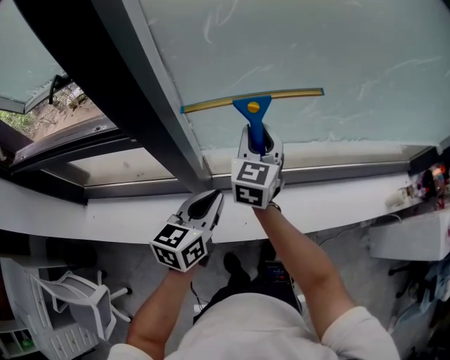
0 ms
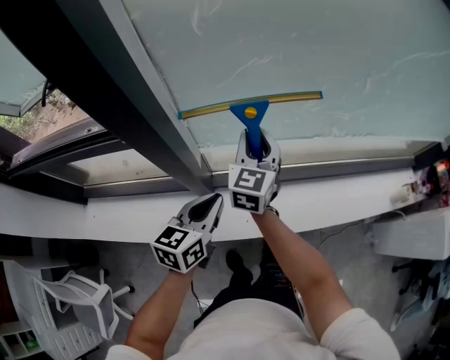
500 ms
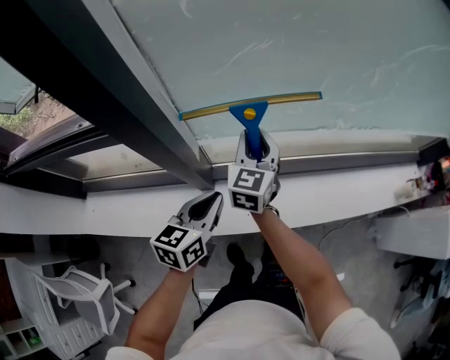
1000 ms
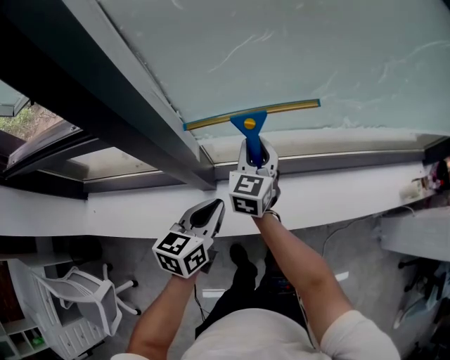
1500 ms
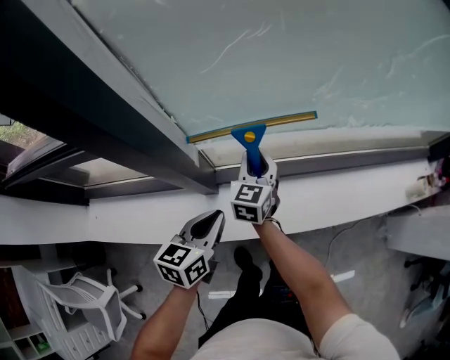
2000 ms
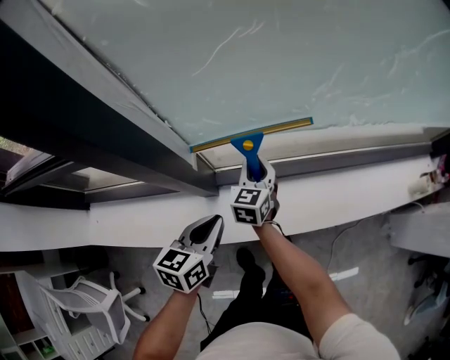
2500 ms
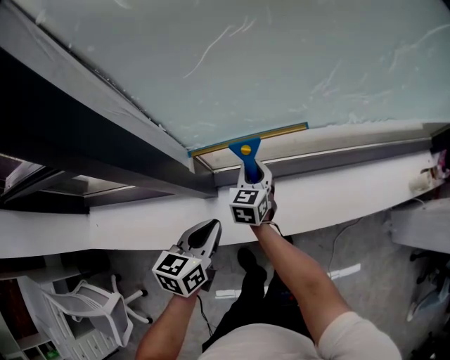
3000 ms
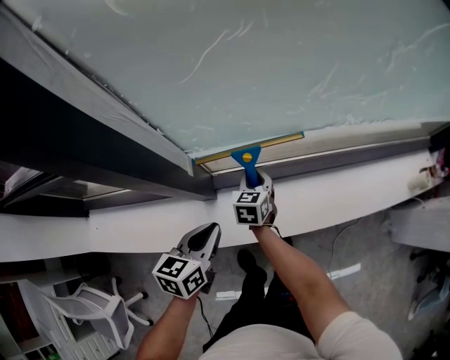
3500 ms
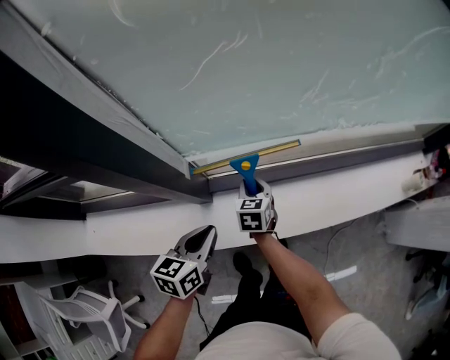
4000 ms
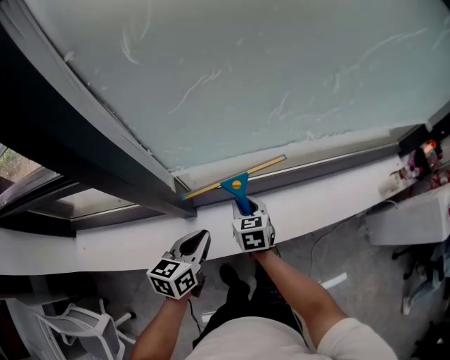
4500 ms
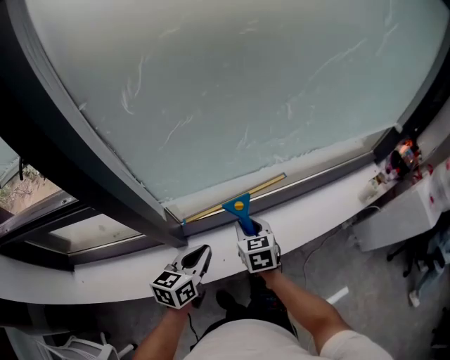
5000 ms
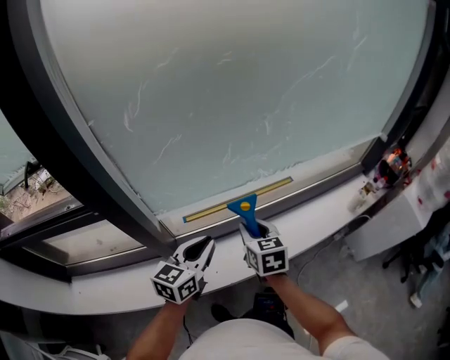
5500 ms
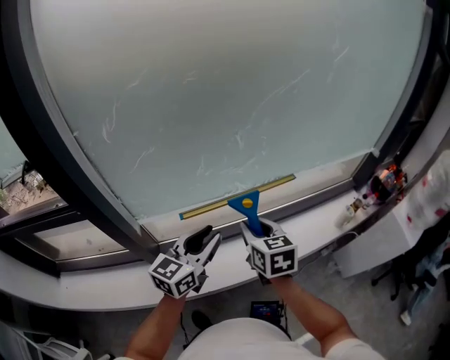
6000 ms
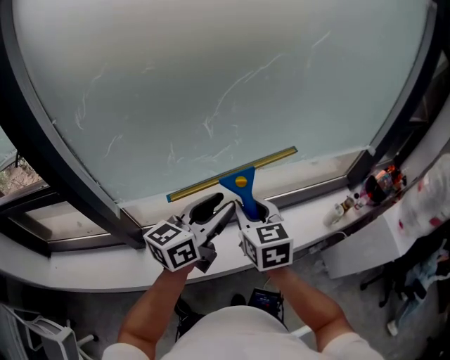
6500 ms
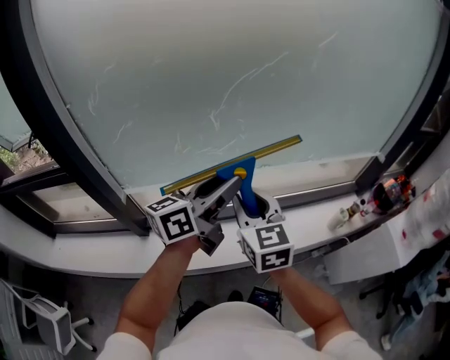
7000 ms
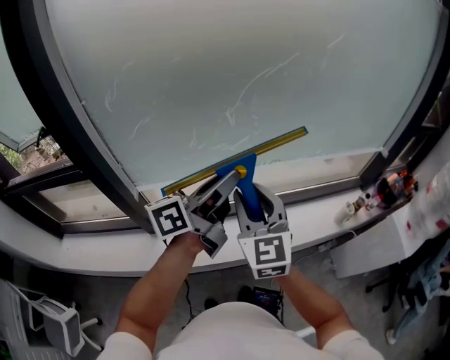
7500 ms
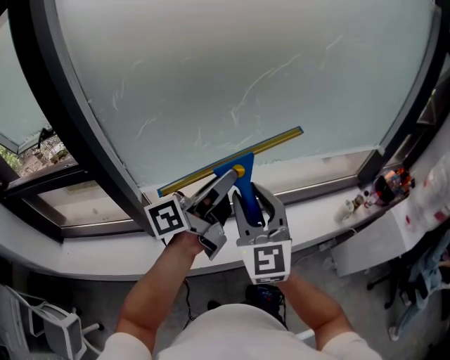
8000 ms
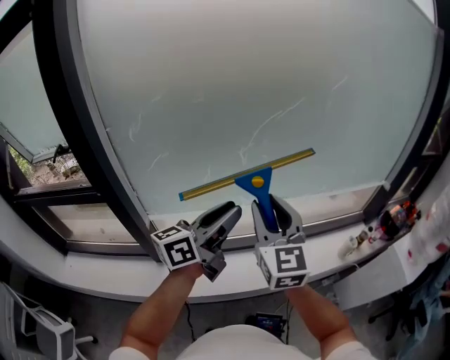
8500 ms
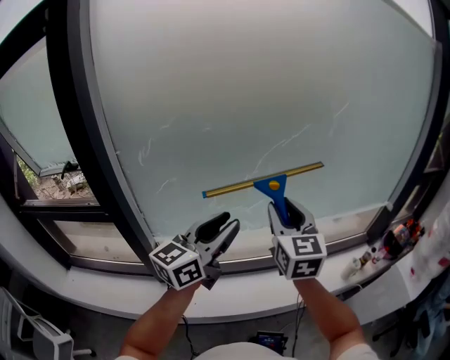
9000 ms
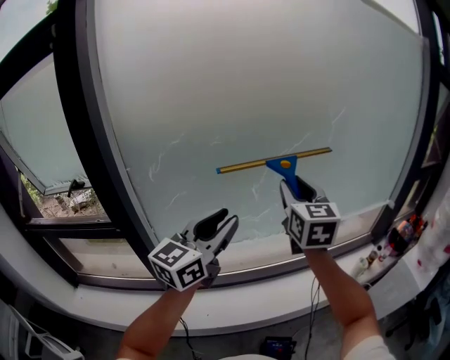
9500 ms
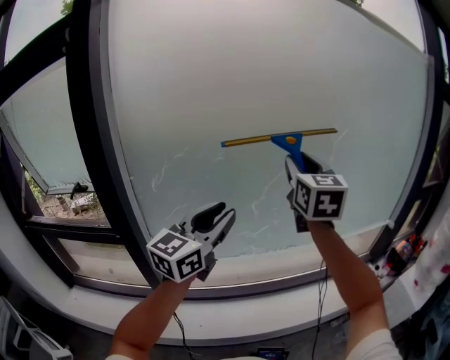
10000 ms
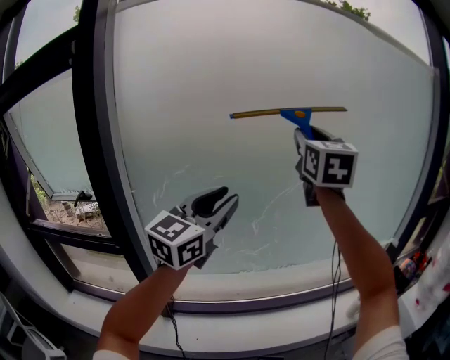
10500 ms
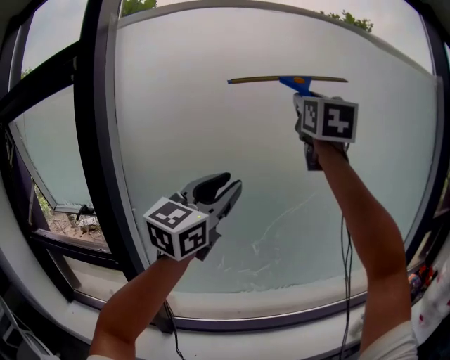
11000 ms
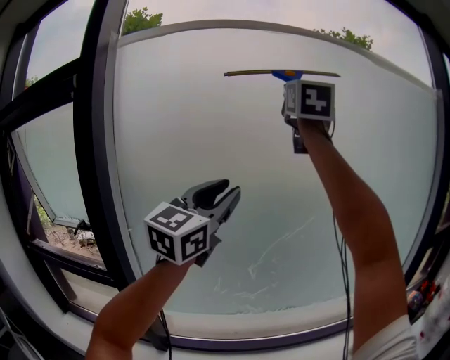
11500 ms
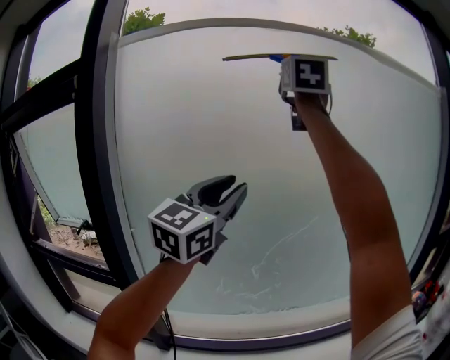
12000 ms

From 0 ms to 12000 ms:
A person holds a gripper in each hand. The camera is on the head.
From 0 ms to 2000 ms: The right gripper shifts roughly 20 cm downward. Meanwhile the left gripper heads downward, covering some 15 cm.
From 2000 ms to 4000 ms: The right gripper moves downward, about 10 cm, and changes its angle by approximately 20 degrees.
From 4000 ms to 6000 ms: The right gripper travels upward and to the right by roughly 40 cm. Meanwhile the left gripper is displaced to the right and upward by some 35 cm, changes its angle by approximately 40 degrees, and opens.
From 6000 ms to 8000 ms: The left gripper shifts about 15 cm upward and to the right, and swivels about 50 degrees. Meanwhile the right gripper shifts approximately 15 cm upward and backward, and points its fingers approximately 30 degrees further upward.
From 8000 ms to 10000 ms: The left gripper heads upward and to the left, covering approximately 15 cm, and rolls clockwise, seen from behind, by some 60 degrees. Meanwhile the right gripper heads upward and forward, covering about 30 cm.
From 10000 ms to 12000 ms: The right gripper goes about 40 cm upward; the left gripper moves upward and forward, roughly 20 cm, and changes its angle by about 20 degrees.

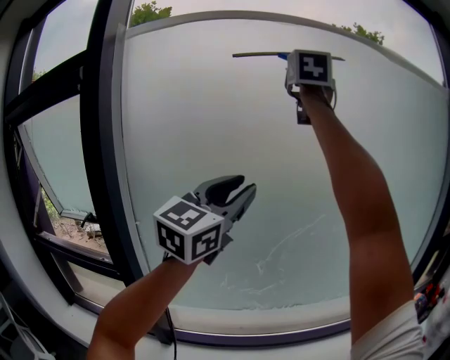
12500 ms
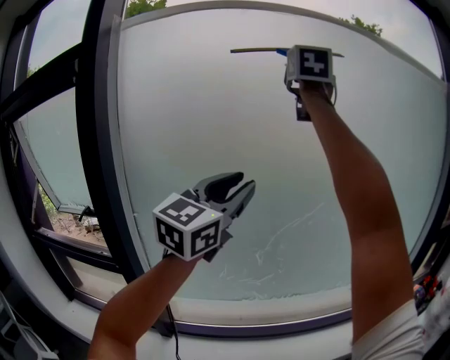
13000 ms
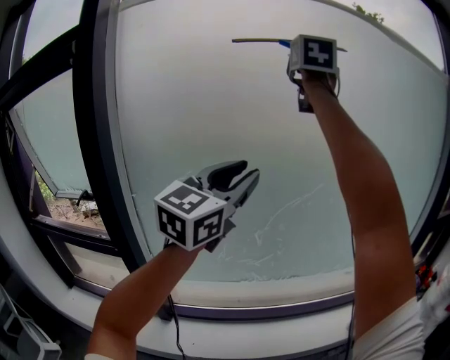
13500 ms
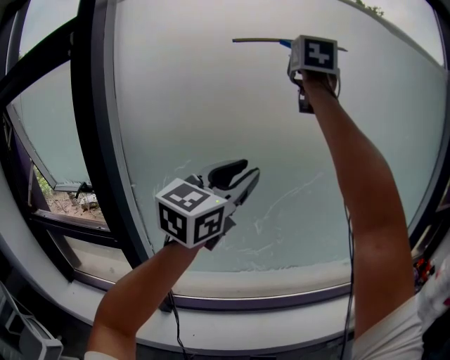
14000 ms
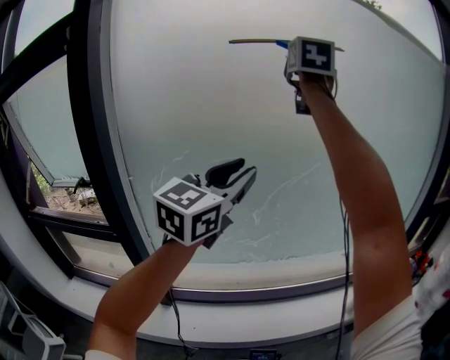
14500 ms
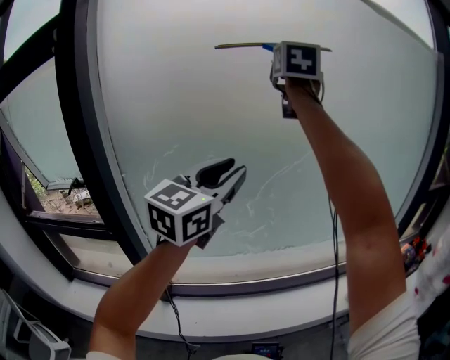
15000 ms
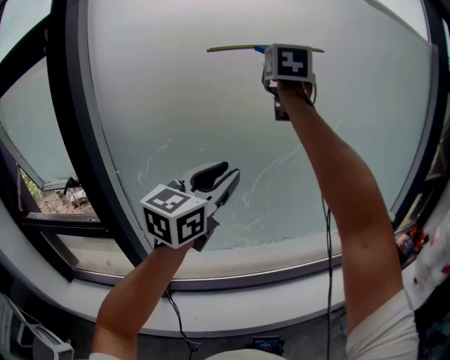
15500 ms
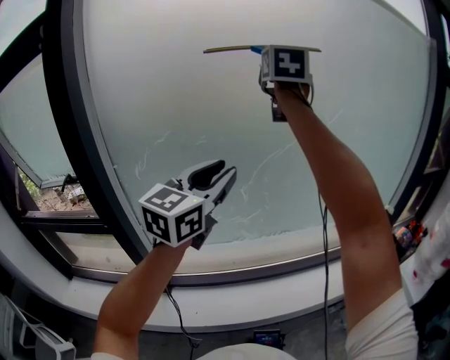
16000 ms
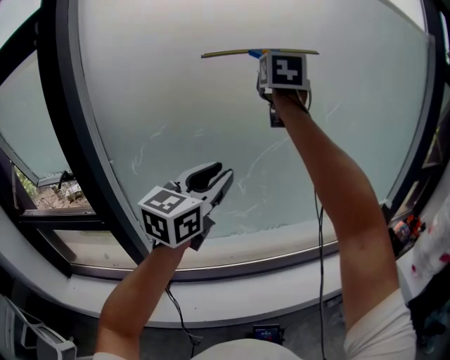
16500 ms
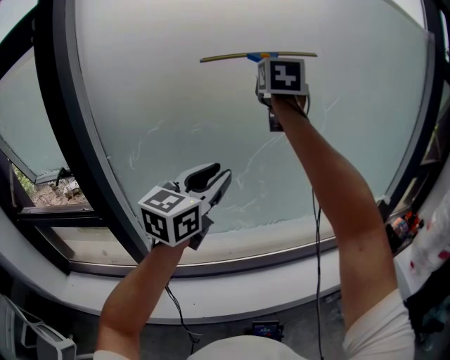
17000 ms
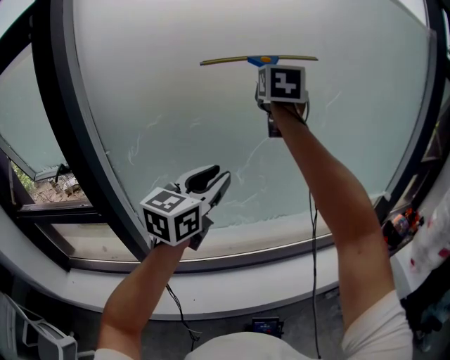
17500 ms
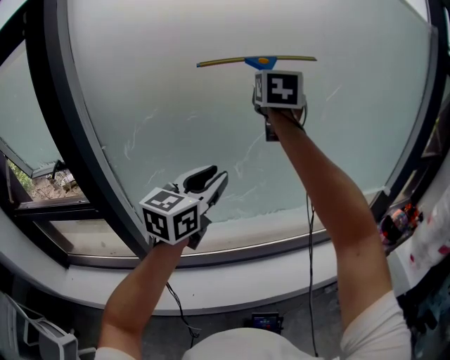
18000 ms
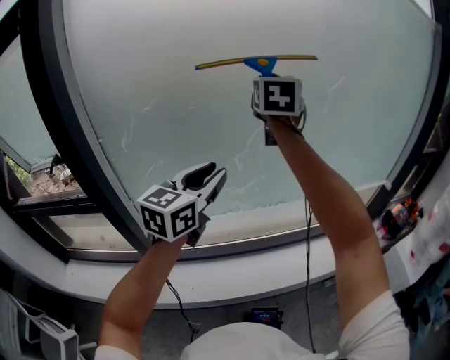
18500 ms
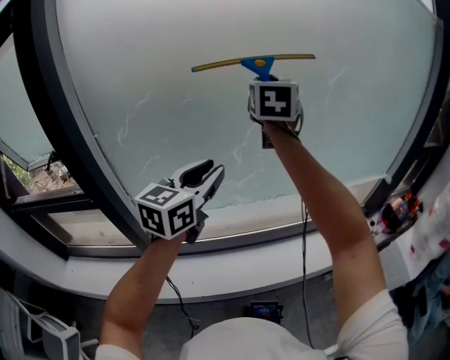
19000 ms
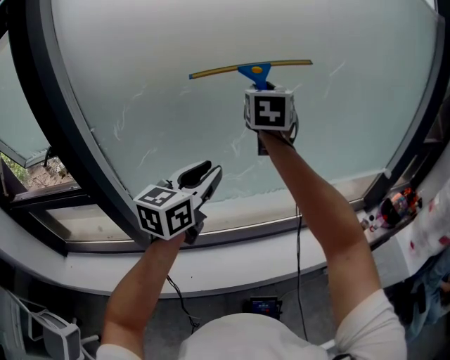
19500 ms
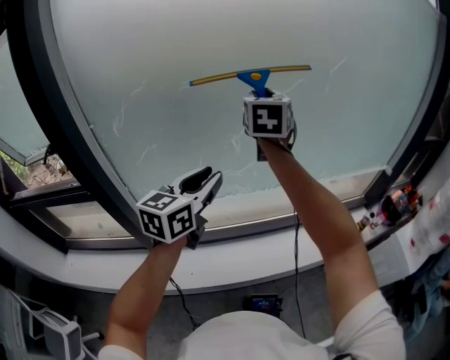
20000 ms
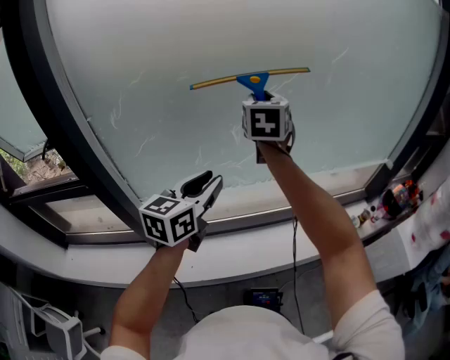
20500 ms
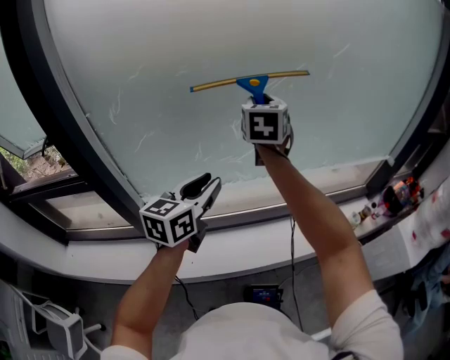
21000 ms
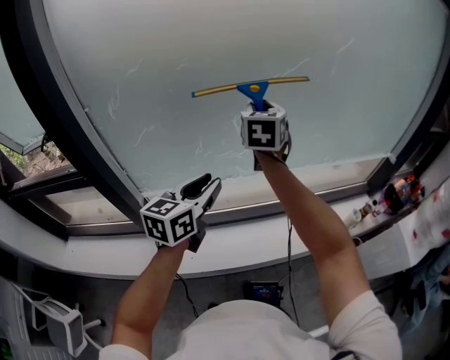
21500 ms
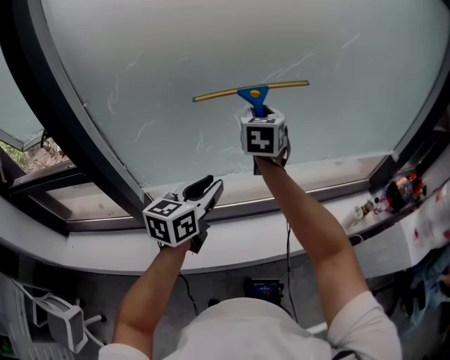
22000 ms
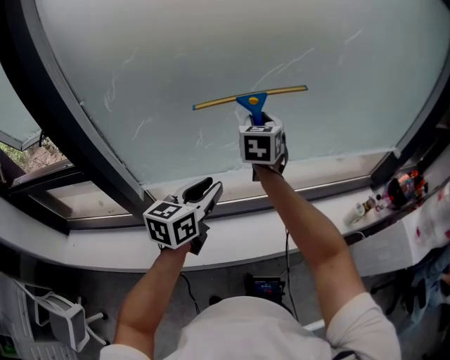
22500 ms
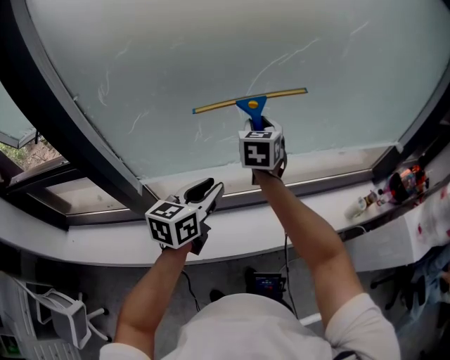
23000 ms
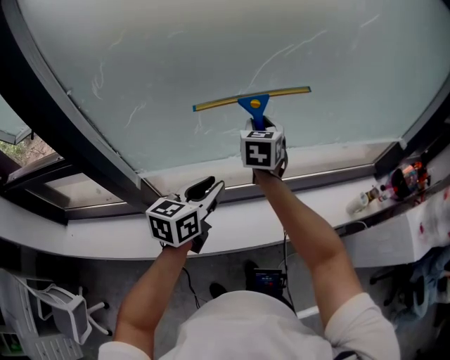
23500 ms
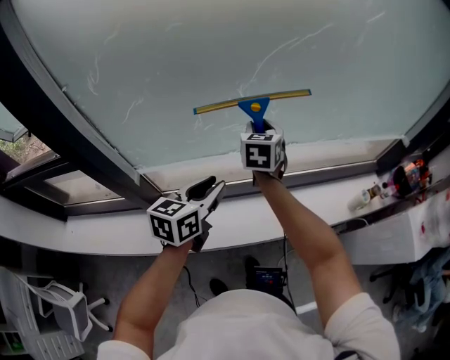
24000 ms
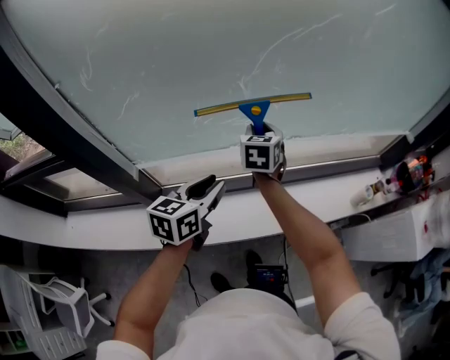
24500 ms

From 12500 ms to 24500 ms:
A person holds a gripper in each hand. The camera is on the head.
From 12500 ms to 14500 ms: Both grippers travel together downward, approximately 10 cm.
From 14500 ms to 16500 ms: Both grippers travel together downward, about 10 cm.
From 16500 ms to 18500 ms: The right gripper travels downward by about 10 cm; the left gripper heads downward, covering roughly 10 cm.
From 18500 ms to 20500 ms: Both grippers travel together downward, some 10 cm.
From 20500 ms to 22500 ms: The right gripper heads downward, covering roughly 15 cm, while the left gripper travels downward by some 10 cm.
From 22500 ms to 24500 ms: The left gripper goes about 10 cm downward. The right gripper moves downward, approximately 15 cm.

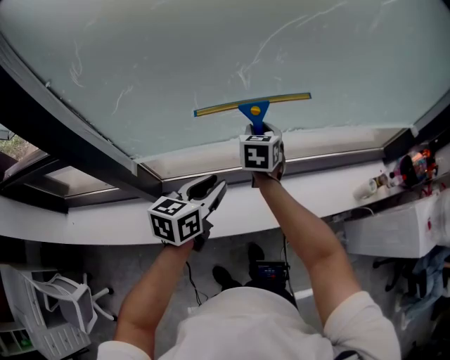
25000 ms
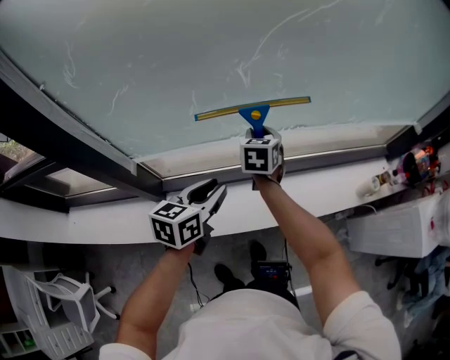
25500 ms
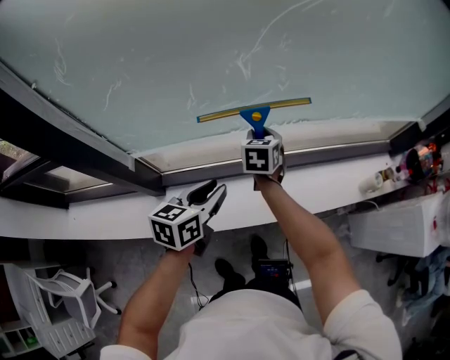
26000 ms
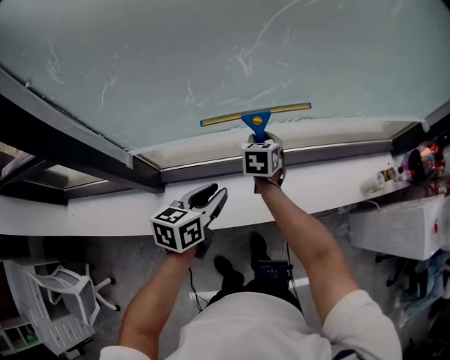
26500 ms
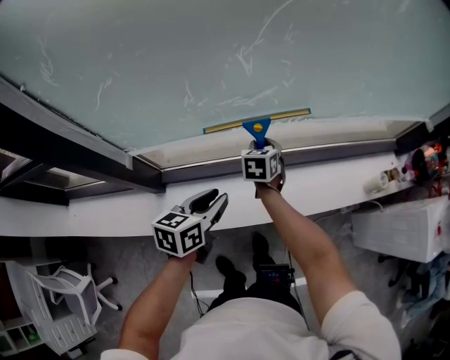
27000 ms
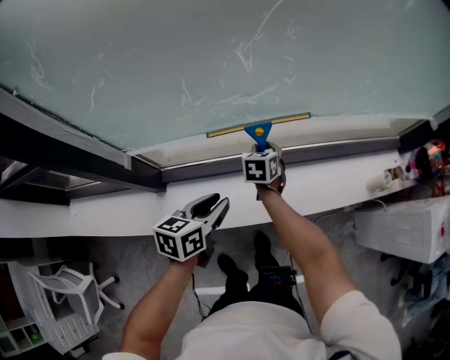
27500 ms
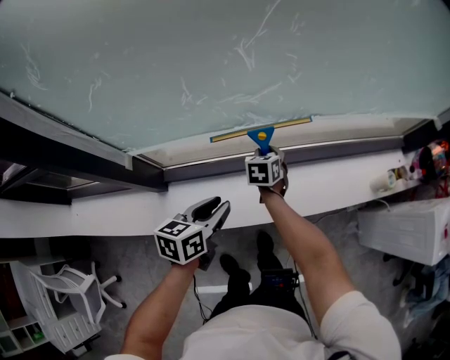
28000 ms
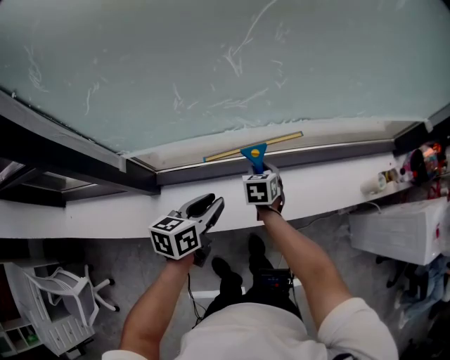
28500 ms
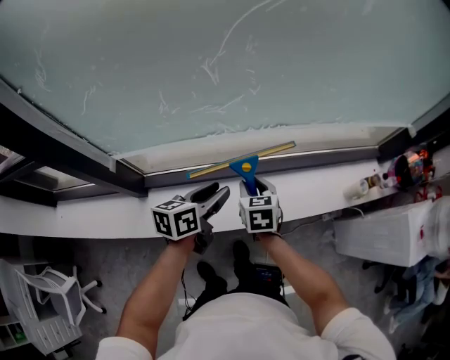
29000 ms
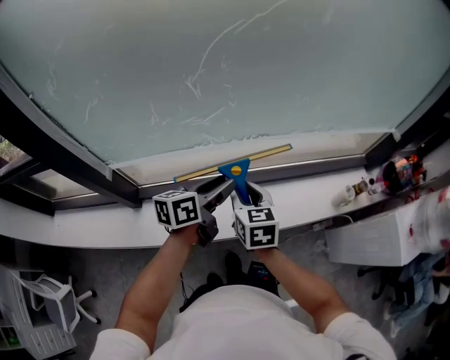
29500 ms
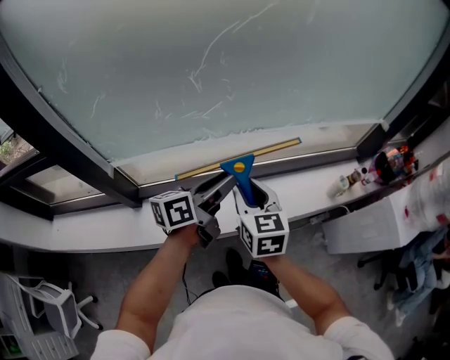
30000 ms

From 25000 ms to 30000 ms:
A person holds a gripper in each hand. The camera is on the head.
From 25000 ms to 27500 ms: The right gripper moves downward, about 20 cm. Meanwhile the left gripper goes roughly 10 cm downward.
From 27500 ms to 30000 ms: The left gripper travels to the right and upward by approximately 20 cm, and turns by approximately 30 degrees. The right gripper moves upward, backward and to the right, roughly 35 cm, and swivels approximately 30 degrees.
